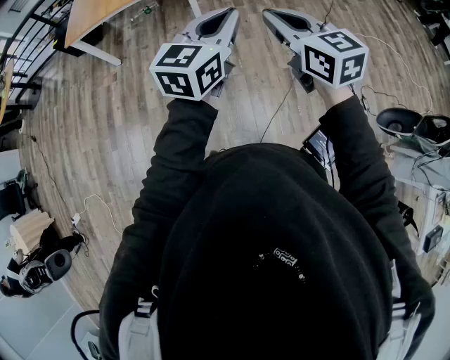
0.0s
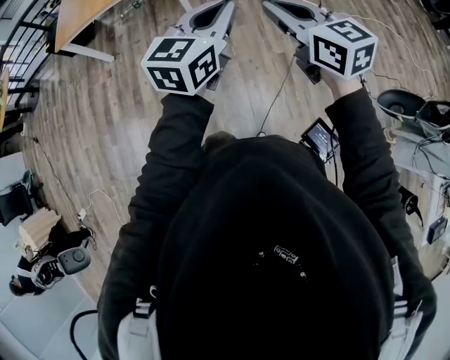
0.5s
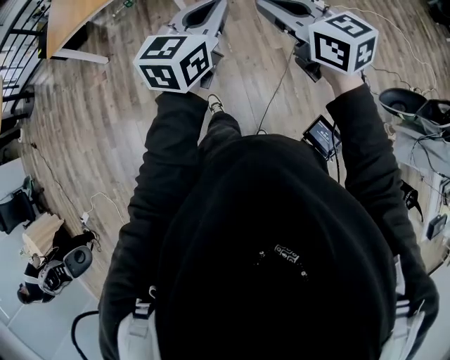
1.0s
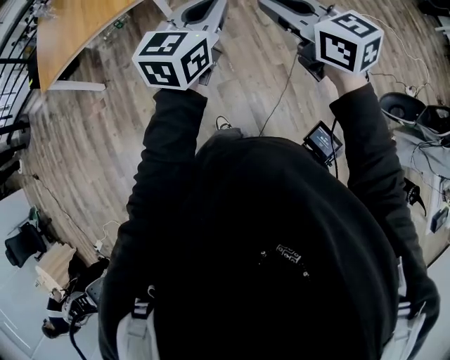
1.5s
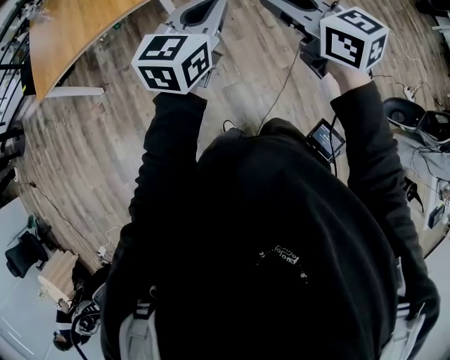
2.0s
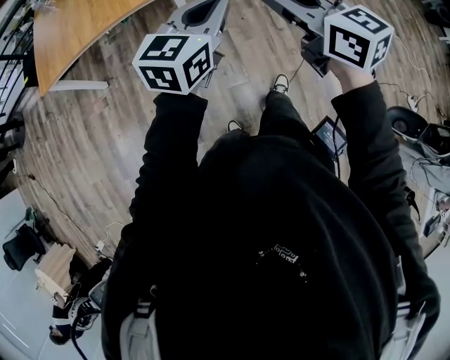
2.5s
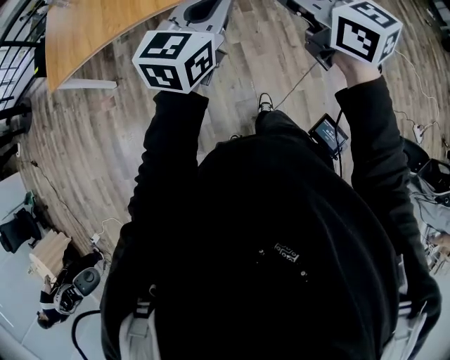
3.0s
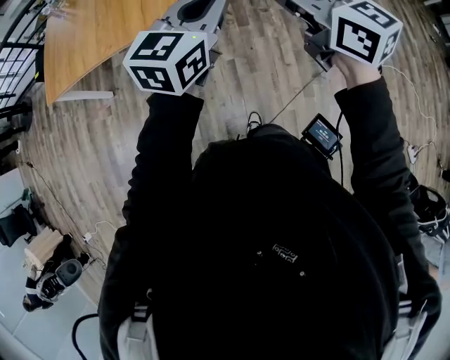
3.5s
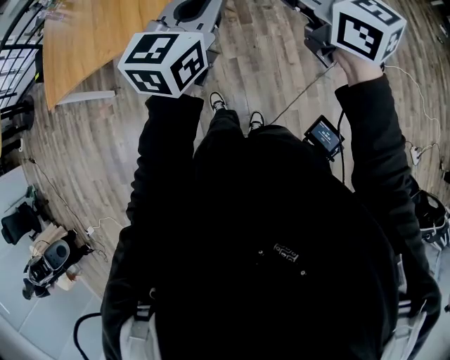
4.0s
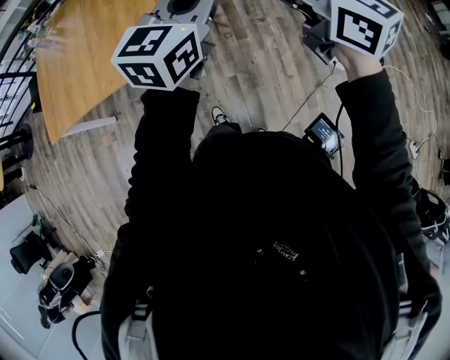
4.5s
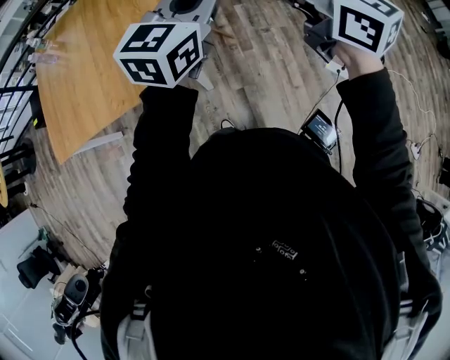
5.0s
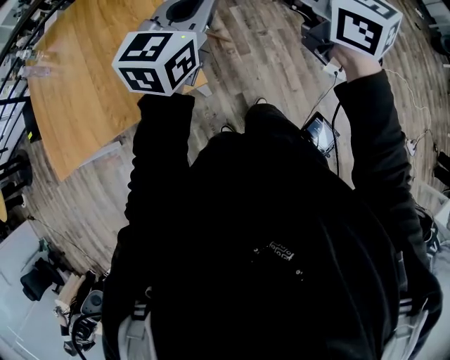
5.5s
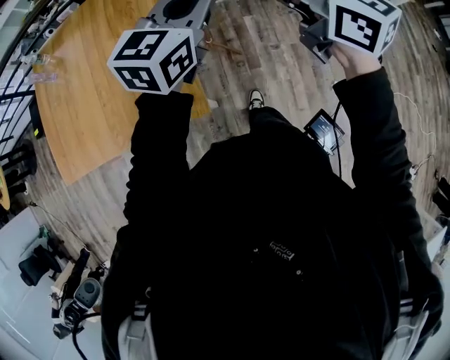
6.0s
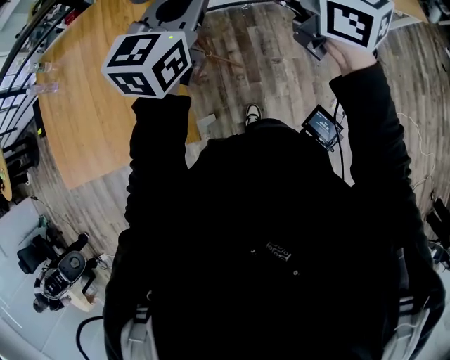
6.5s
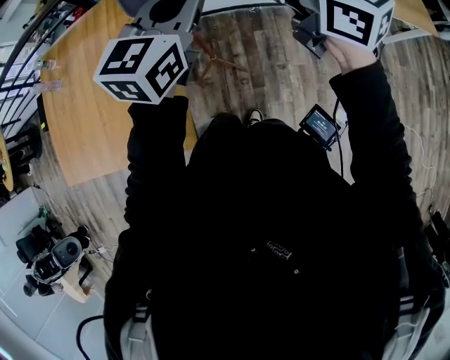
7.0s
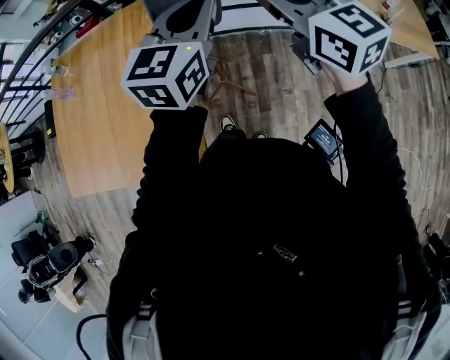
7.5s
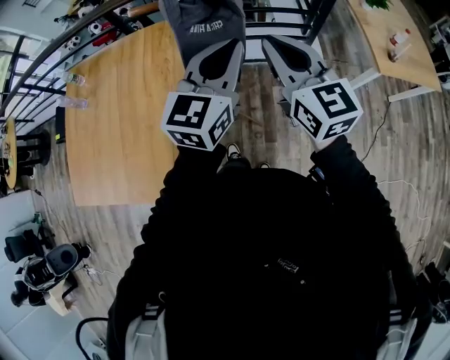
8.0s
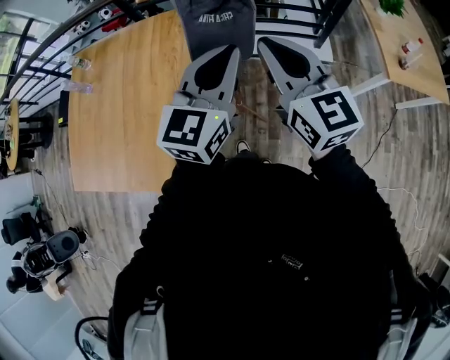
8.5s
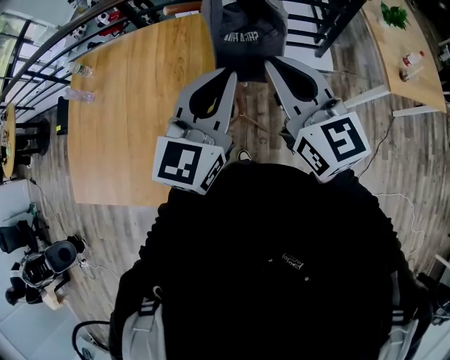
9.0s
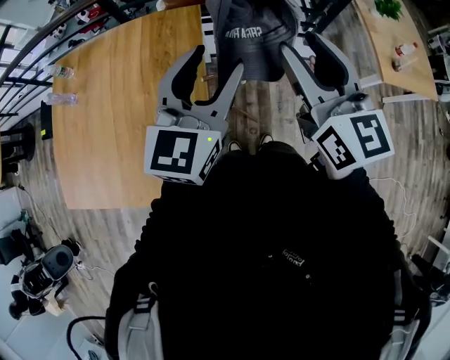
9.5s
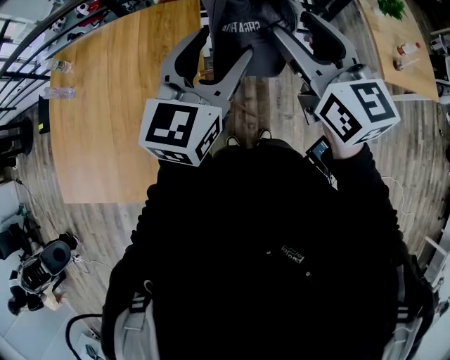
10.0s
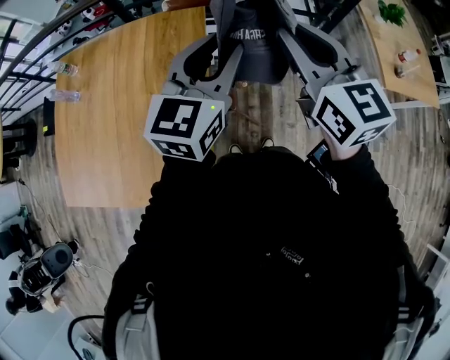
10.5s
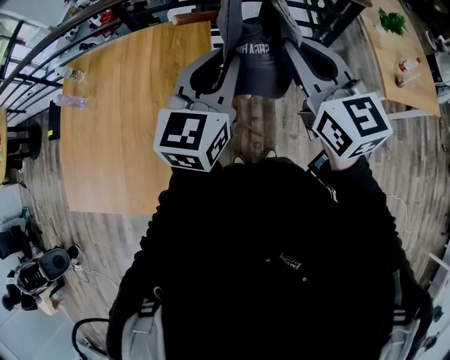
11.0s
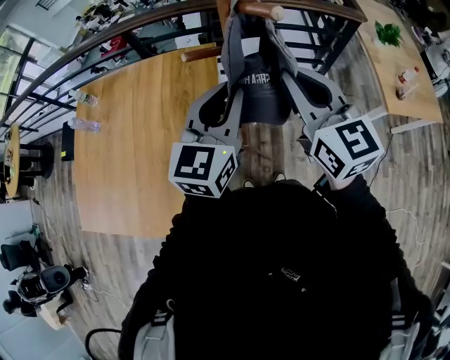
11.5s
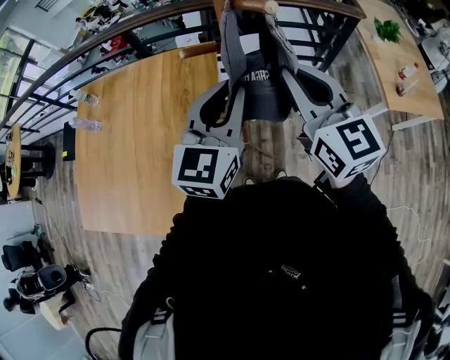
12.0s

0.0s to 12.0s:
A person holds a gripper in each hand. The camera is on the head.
0.0s to 2.0s: Both grippers move forward, about 25 cm.
2.0s to 4.0s: Both grippers move forward, approximately 30 cm.
4.0s to 6.0s: Both grippers move forward, approximately 40 cm.
6.0s to 8.0s: Both grippers travel together forward, some 15 cm.
8.0s to 10.0s: The left gripper is displaced to the left by about 10 cm, and opens up; the right gripper shifts approximately 5 cm forward, and opens its fingers.
10.0s to 12.0s: The left gripper closes, while the right gripper closes.

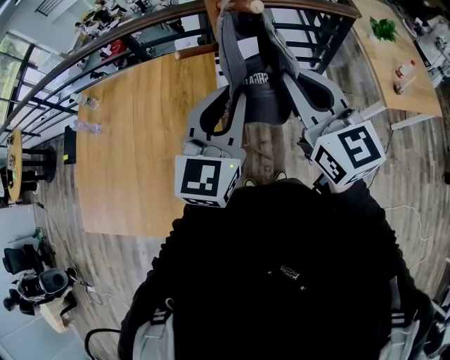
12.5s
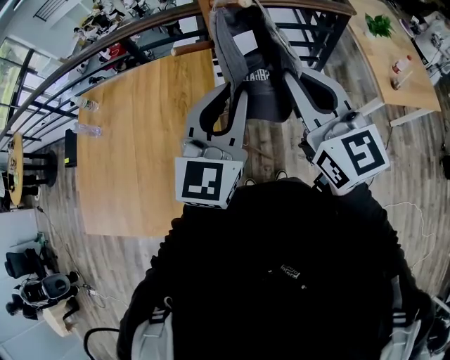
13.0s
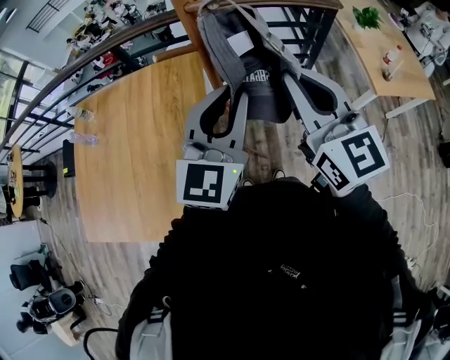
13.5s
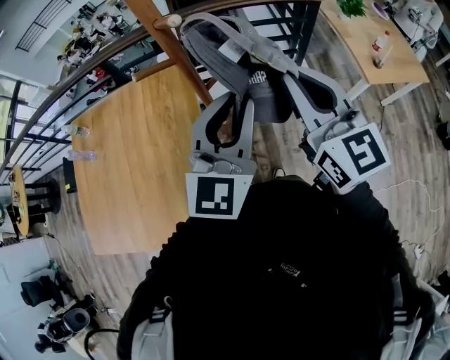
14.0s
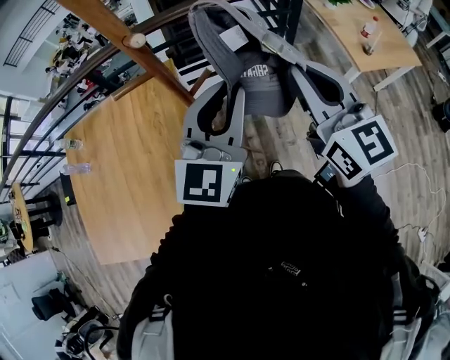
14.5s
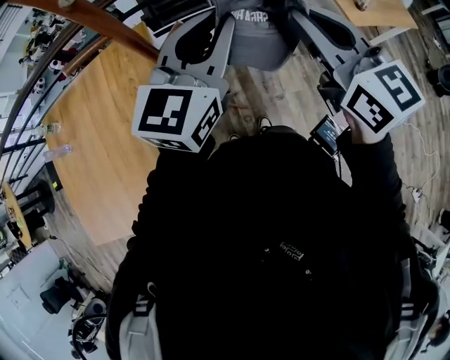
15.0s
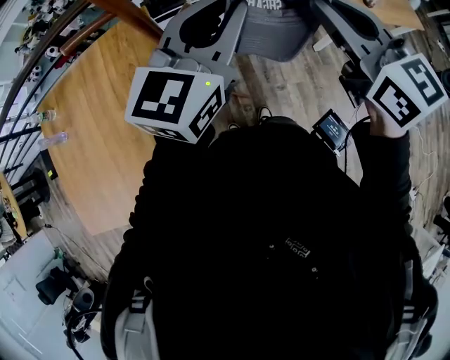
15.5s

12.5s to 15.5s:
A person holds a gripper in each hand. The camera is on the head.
12.5s to 14.0s: Both grippers move to the right, some 5 cm.
14.0s to 15.5s: The left gripper is displaced forward and to the right by about 10 cm, and swivels roughly 20 degrees. The right gripper moves to the right, approximately 10 cm.
